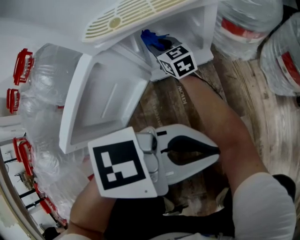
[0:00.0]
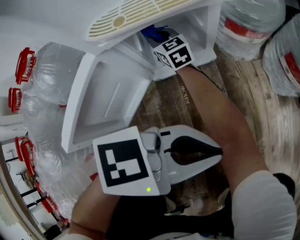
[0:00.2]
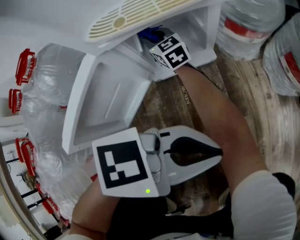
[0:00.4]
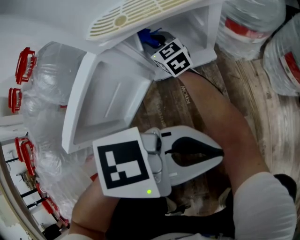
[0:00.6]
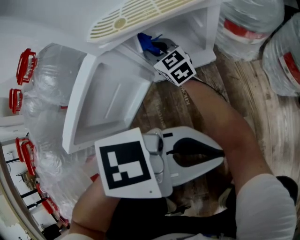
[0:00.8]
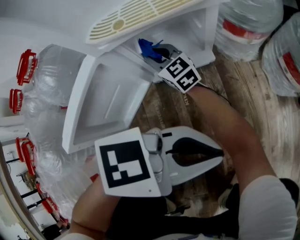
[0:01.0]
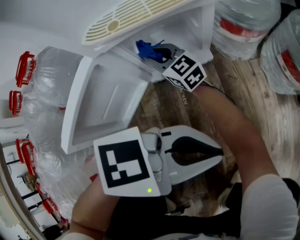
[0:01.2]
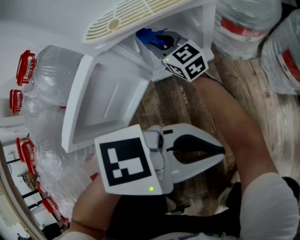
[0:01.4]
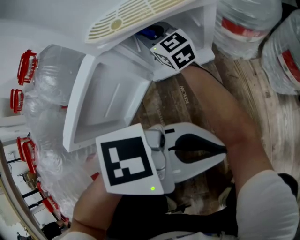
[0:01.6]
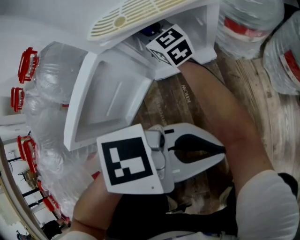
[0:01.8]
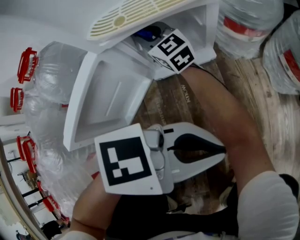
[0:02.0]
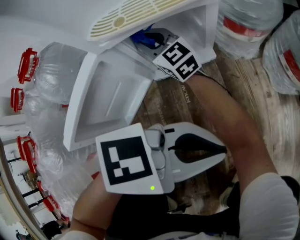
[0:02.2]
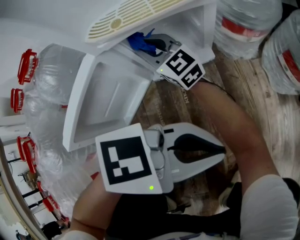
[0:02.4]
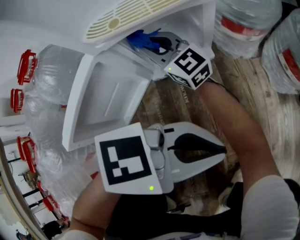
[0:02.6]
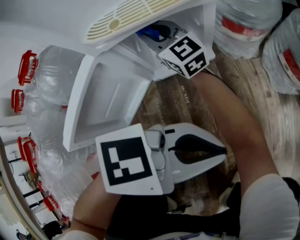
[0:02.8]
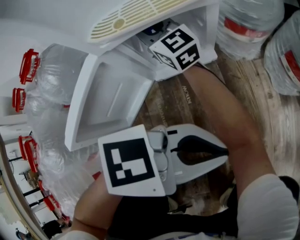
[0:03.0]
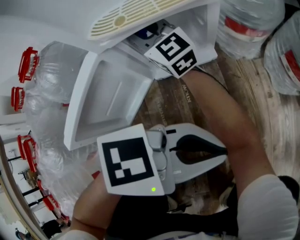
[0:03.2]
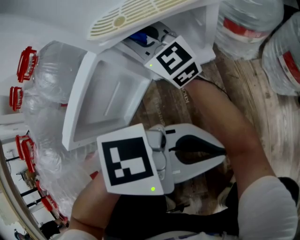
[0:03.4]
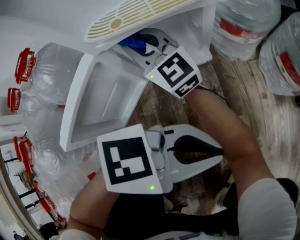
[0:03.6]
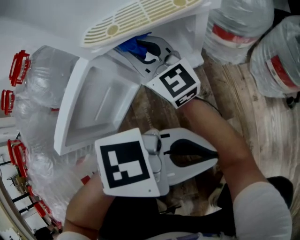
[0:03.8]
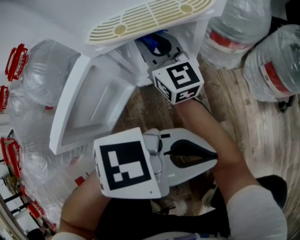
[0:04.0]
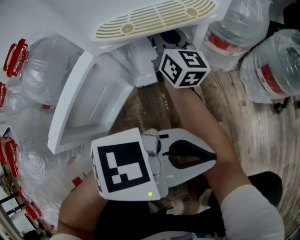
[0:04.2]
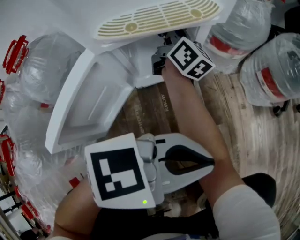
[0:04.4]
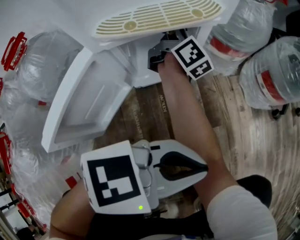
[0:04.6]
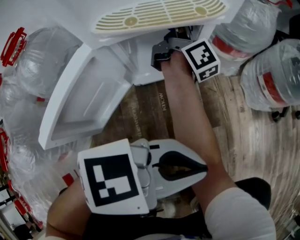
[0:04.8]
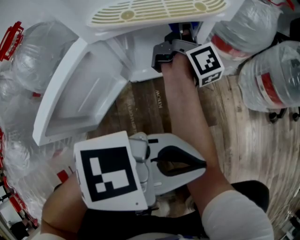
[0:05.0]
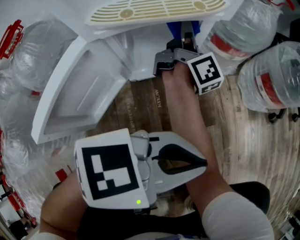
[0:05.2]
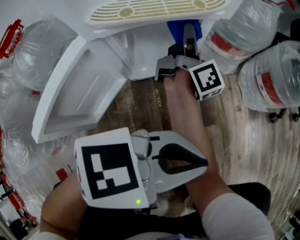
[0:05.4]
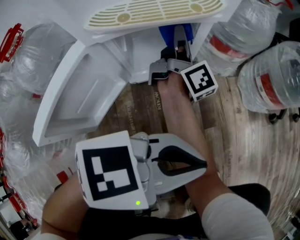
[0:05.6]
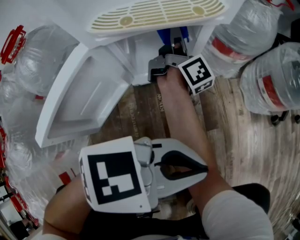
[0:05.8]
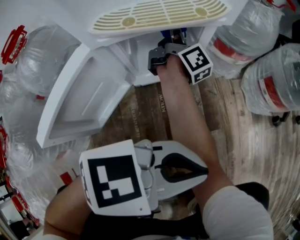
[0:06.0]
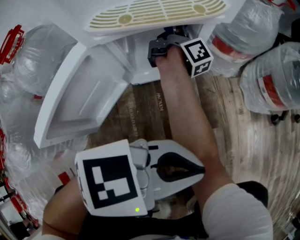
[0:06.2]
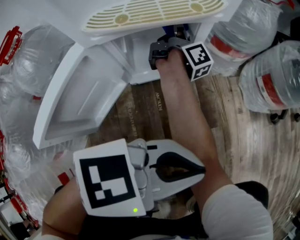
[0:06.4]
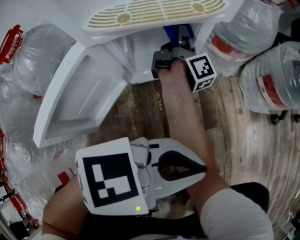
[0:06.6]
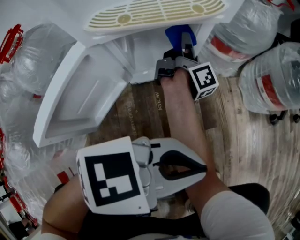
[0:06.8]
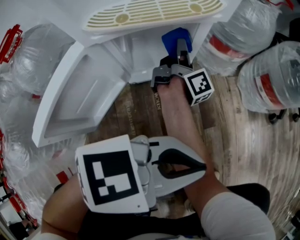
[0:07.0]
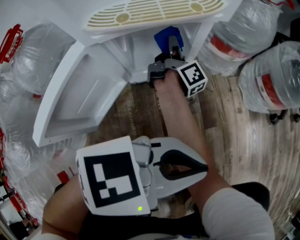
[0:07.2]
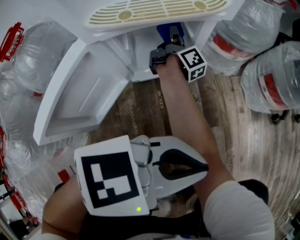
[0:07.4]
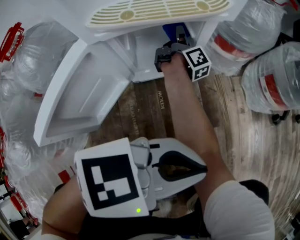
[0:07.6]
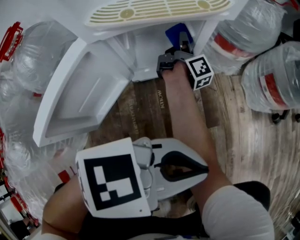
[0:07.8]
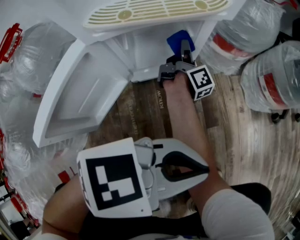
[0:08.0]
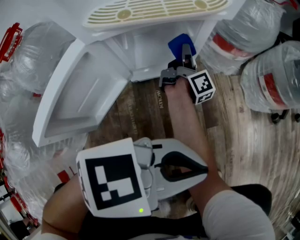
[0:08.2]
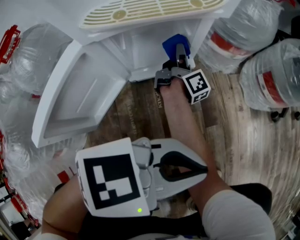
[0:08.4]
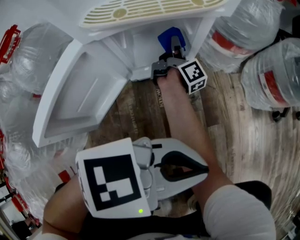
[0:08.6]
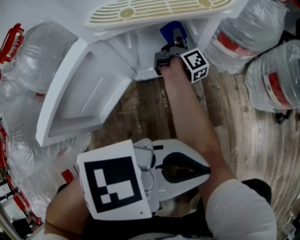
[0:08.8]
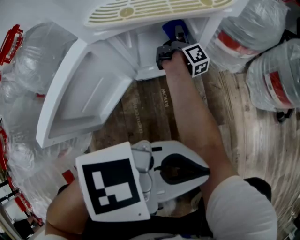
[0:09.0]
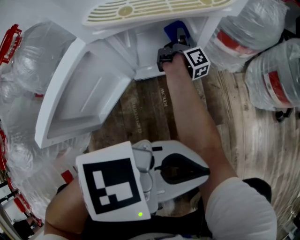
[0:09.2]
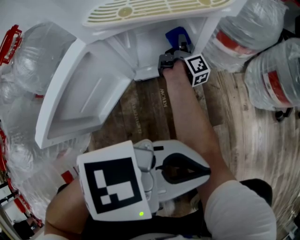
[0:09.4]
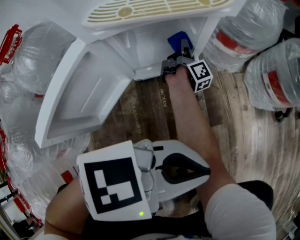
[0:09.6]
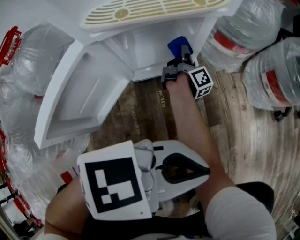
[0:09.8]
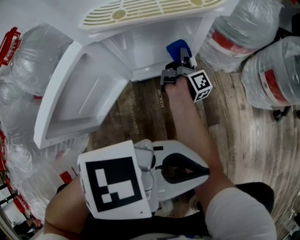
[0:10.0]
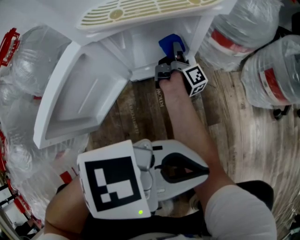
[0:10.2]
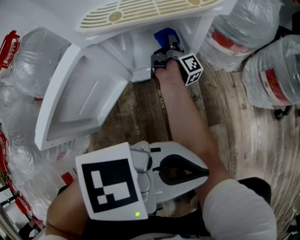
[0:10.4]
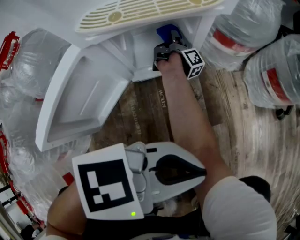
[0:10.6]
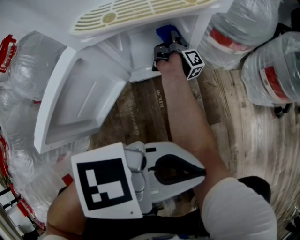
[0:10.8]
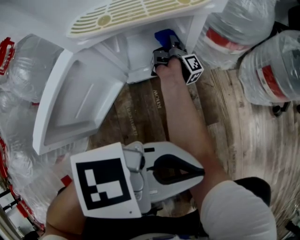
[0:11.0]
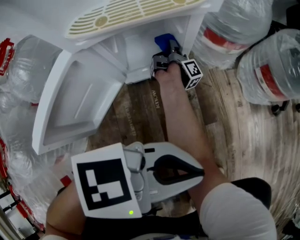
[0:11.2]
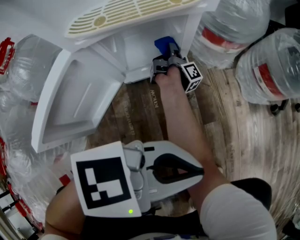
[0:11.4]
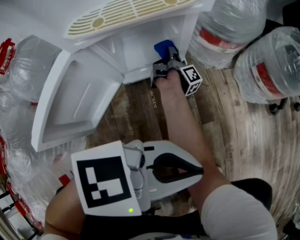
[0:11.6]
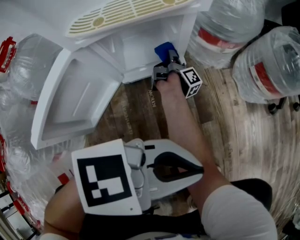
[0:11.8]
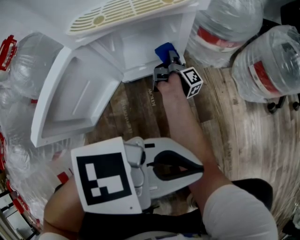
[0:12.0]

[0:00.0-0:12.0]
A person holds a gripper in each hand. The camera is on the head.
0:00.0 to 0:01.6: The right gripper goes some 10 cm upward.
0:01.6 to 0:03.0: The right gripper moves upward, some 5 cm.
0:03.0 to 0:04.4: The right gripper shifts by roughly 15 cm, and changes its angle by about 50 degrees.
0:04.4 to 0:06.0: The right gripper reaches roughly 10 cm to the right, then returns, and swivels some 30 degrees.
0:06.0 to 0:07.6: The right gripper goes about 10 cm downward.
0:07.6 to 0:09.0: The right gripper moves roughly 5 cm to the right and comes back.
0:09.0 to 0:10.4: The right gripper reaches about 10 cm to the right, then returns.
0:10.4 to 0:12.0: The right gripper heads to the right, covering some 10 cm.

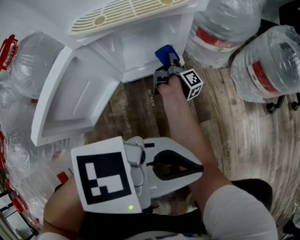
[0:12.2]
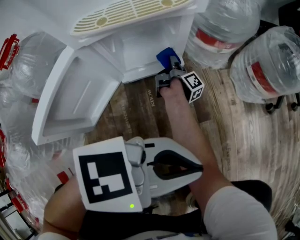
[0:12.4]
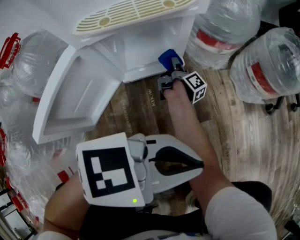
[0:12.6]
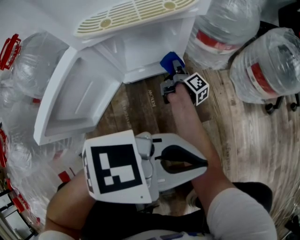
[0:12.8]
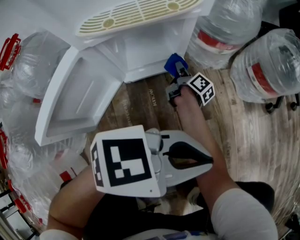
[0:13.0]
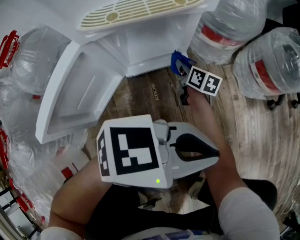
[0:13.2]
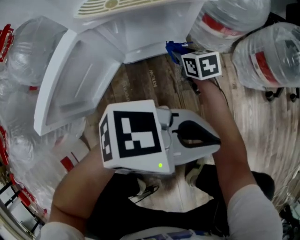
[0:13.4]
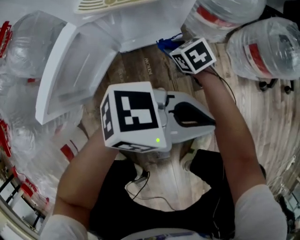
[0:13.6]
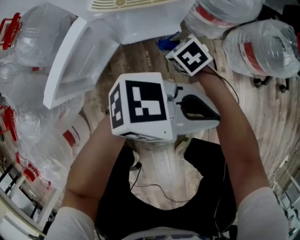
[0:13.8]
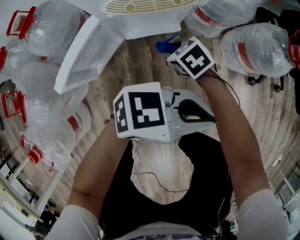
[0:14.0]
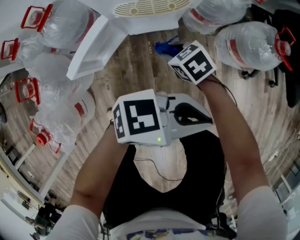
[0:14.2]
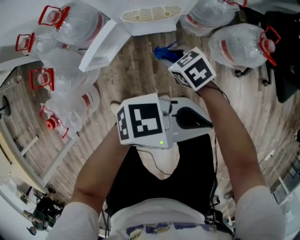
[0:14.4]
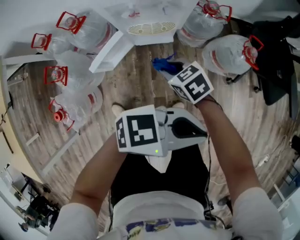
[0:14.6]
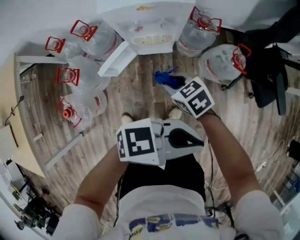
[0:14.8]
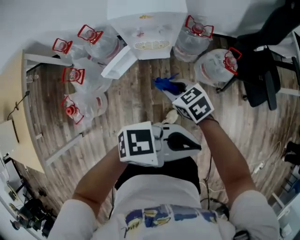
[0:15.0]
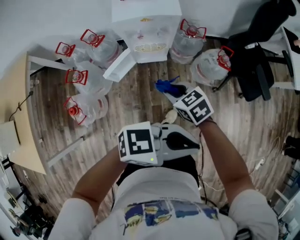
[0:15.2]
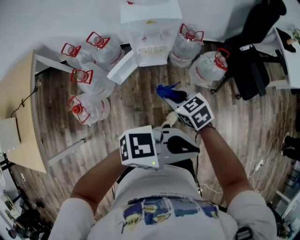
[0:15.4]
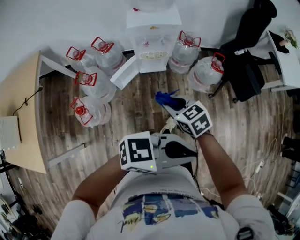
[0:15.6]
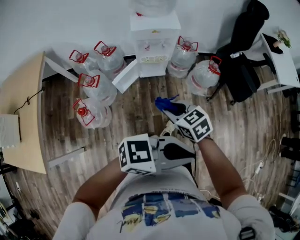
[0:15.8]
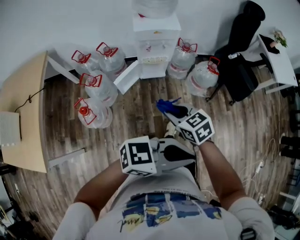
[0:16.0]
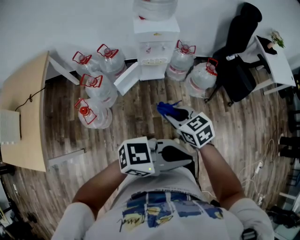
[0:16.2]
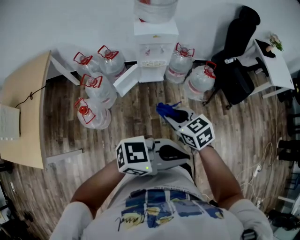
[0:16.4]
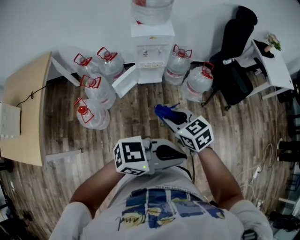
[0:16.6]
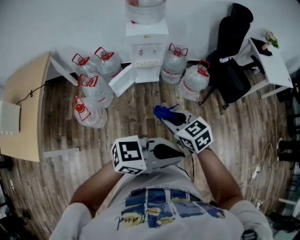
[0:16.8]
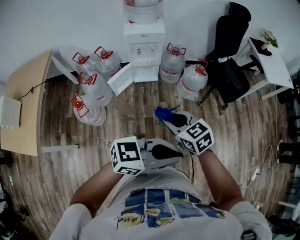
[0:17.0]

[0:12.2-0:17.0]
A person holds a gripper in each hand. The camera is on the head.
0:12.2 to 0:13.8: The right gripper changes place by some 20 cm, and rolls counterclockwise, seen from behind, by about 110 degrees. The left gripper shifts about 5 cm upward.
0:13.8 to 0:15.4: Both grippers travel together upward, some 60 cm.
0:15.4 to 0:17.0: The left gripper ends up some 25 cm from where it was. Meanwhile the right gripper ends up about 30 cm from where it was.

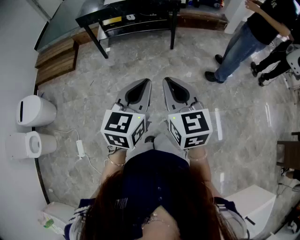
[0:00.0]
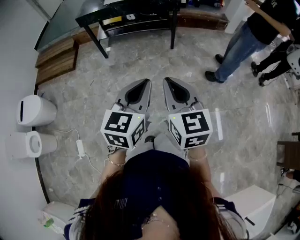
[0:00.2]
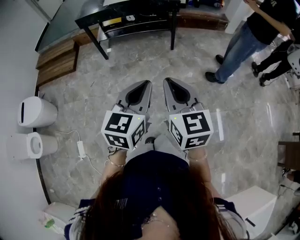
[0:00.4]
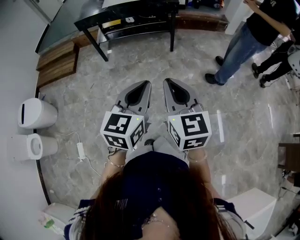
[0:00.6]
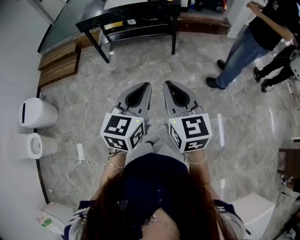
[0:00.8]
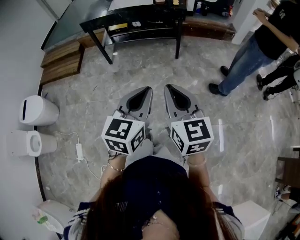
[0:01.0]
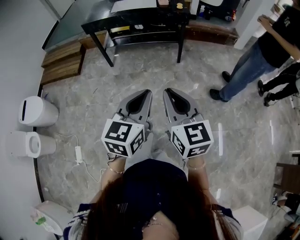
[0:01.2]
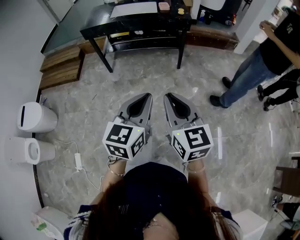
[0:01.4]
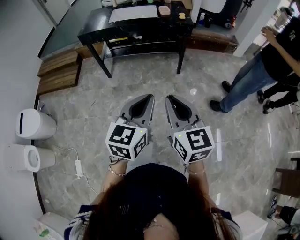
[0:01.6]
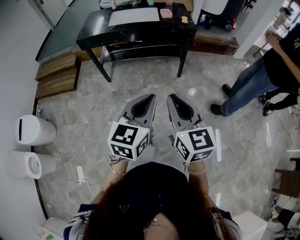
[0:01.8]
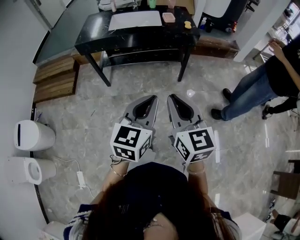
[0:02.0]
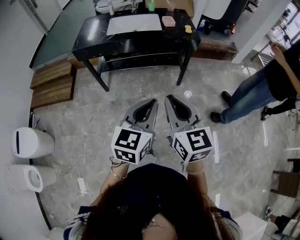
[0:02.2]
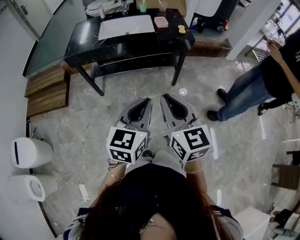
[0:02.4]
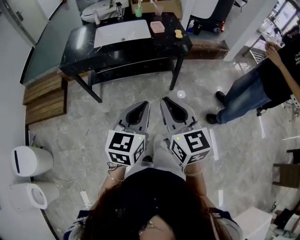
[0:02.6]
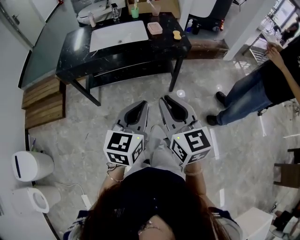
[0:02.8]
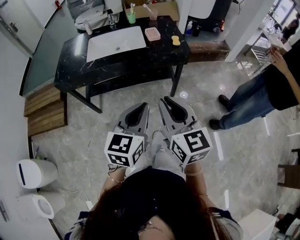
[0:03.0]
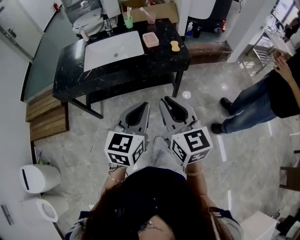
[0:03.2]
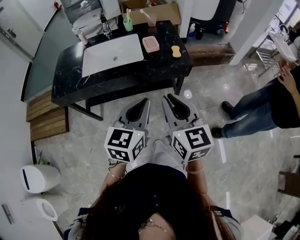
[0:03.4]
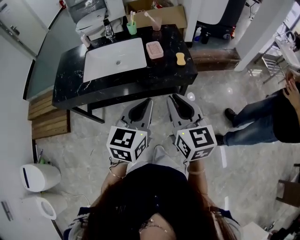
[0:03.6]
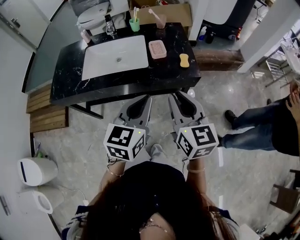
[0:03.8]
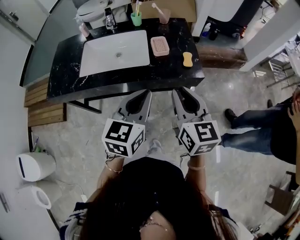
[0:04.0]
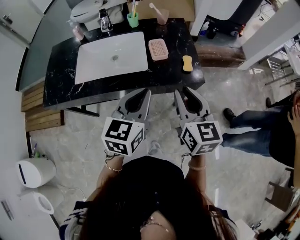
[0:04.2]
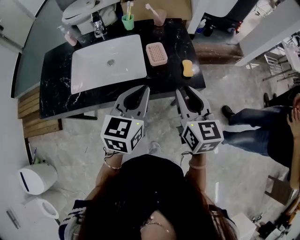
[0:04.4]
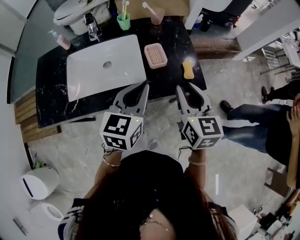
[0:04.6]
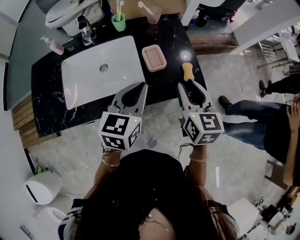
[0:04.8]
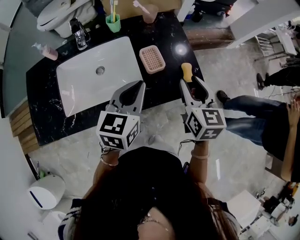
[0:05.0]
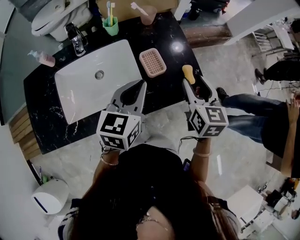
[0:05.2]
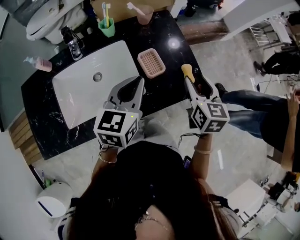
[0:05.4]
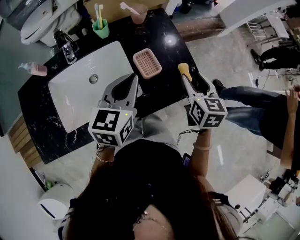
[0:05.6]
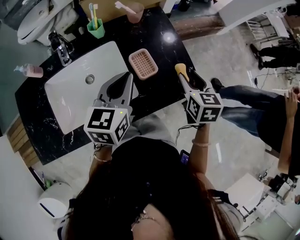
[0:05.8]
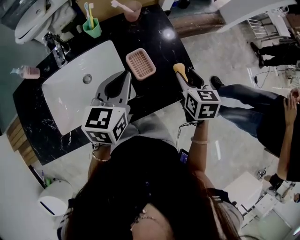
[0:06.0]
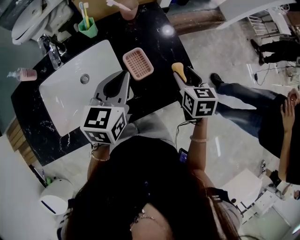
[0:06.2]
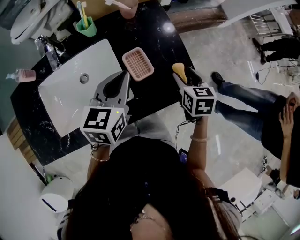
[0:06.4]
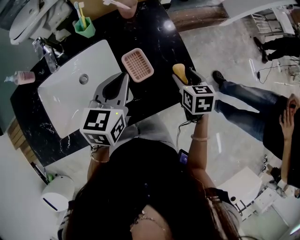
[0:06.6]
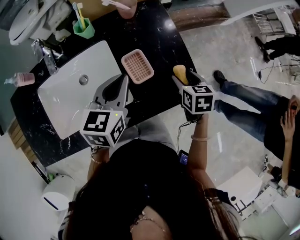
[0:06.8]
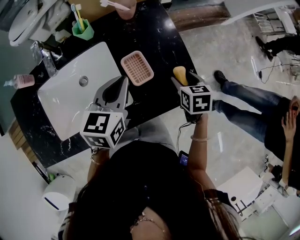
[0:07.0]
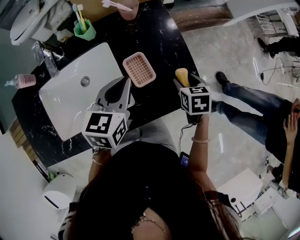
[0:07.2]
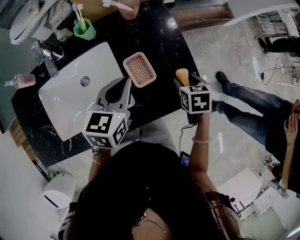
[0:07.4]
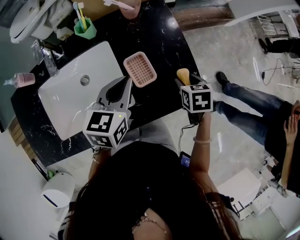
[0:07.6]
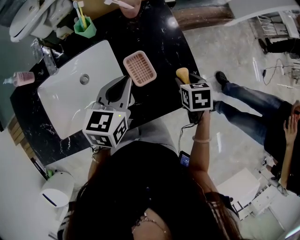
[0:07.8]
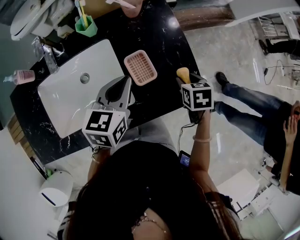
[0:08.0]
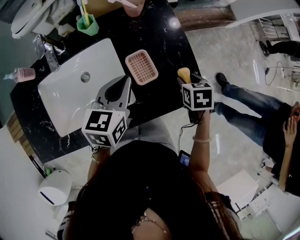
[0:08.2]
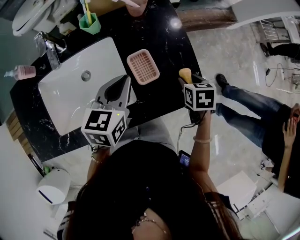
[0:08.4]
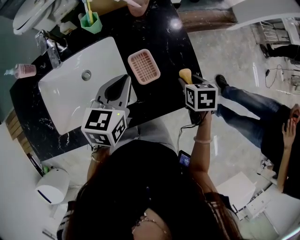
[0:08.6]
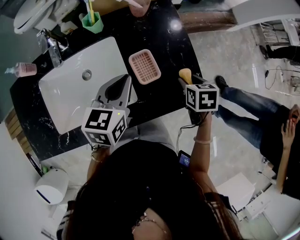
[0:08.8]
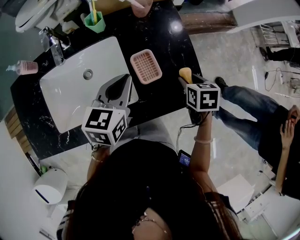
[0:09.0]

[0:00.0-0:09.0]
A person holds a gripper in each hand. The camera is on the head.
0:00.0 to 0:01.6: Both grippers move forward, roughly 20 cm.
0:01.6 to 0:03.0: The two grippers go about 35 cm forward.
0:03.0 to 0:04.4: Both grippers move forward, about 40 cm.
0:04.4 to 0:06.0: The right gripper travels forward and downward by about 20 cm, changes its angle by roughly 30 degrees, and opens up, while the left gripper shifts some 20 cm forward.
0:06.0 to 0:07.6: The right gripper travels downward by about 10 cm, and changes its angle by approximately 20 degrees. The left gripper shifts some 5 cm downward.
0:07.6 to 0:09.0: The grippers move only a little.
